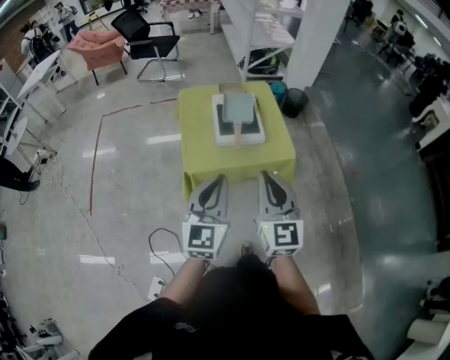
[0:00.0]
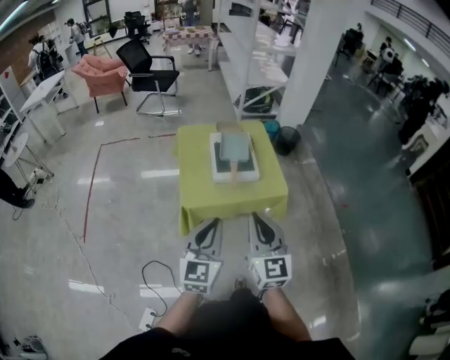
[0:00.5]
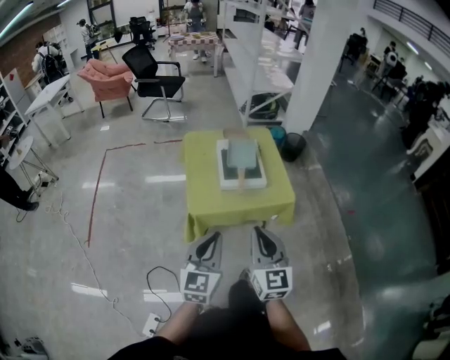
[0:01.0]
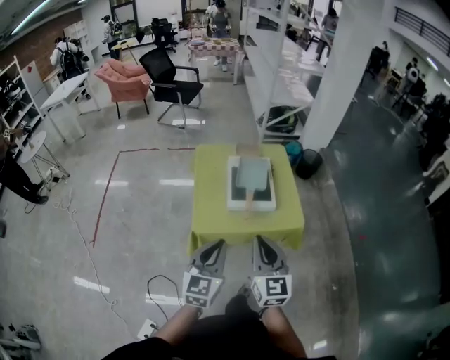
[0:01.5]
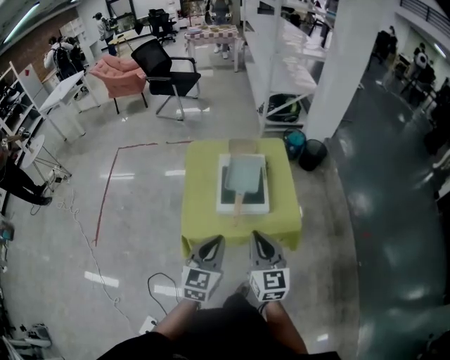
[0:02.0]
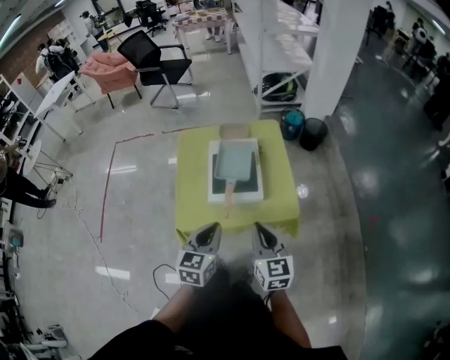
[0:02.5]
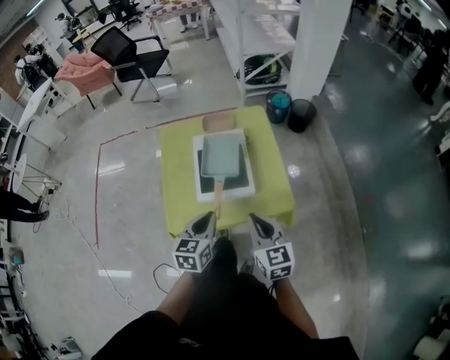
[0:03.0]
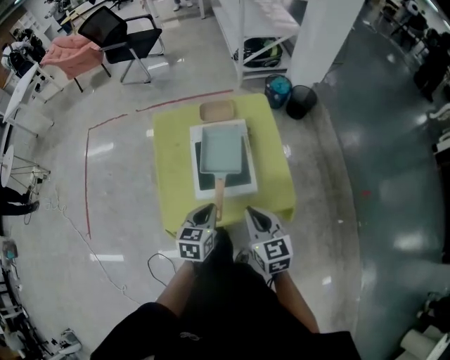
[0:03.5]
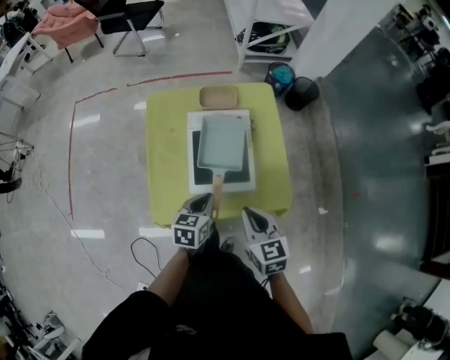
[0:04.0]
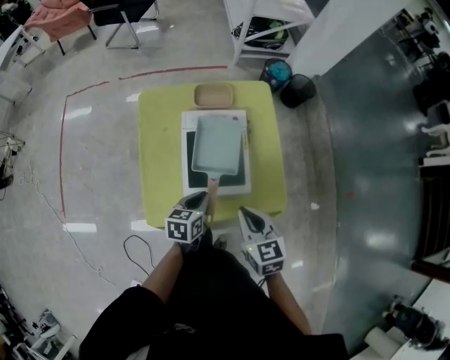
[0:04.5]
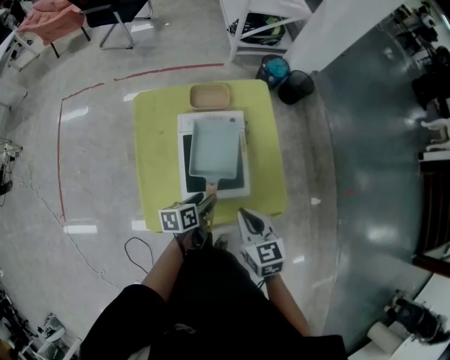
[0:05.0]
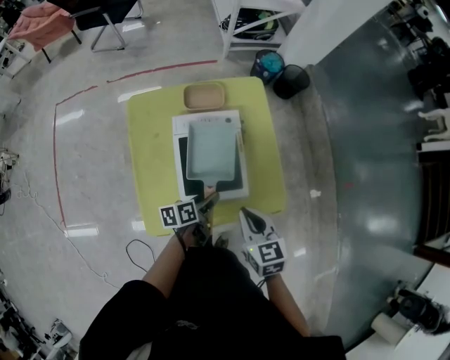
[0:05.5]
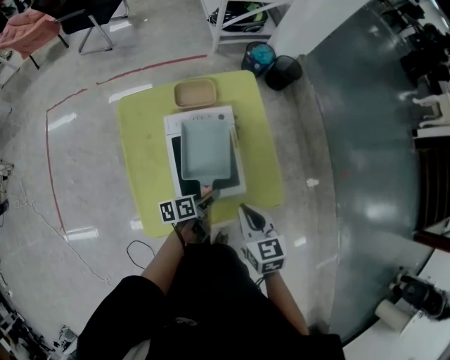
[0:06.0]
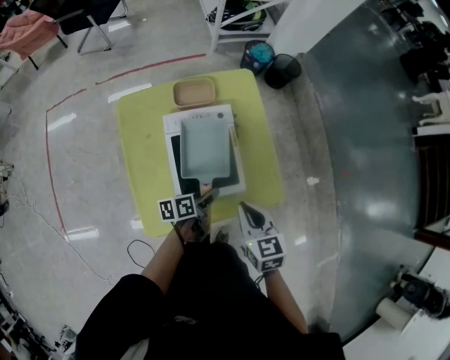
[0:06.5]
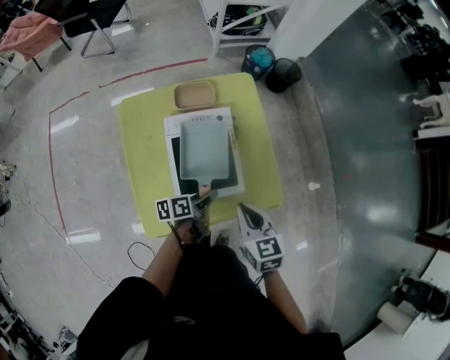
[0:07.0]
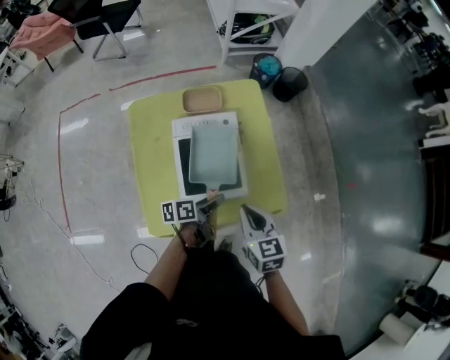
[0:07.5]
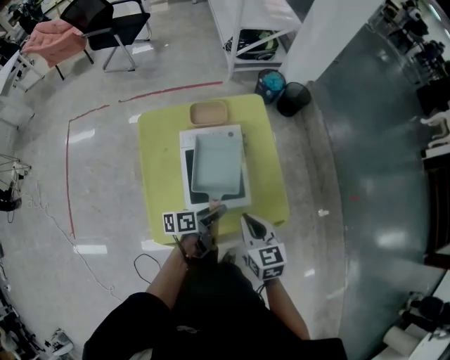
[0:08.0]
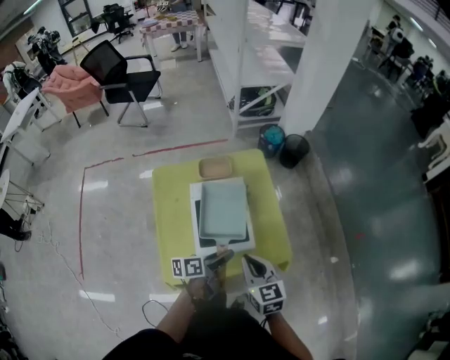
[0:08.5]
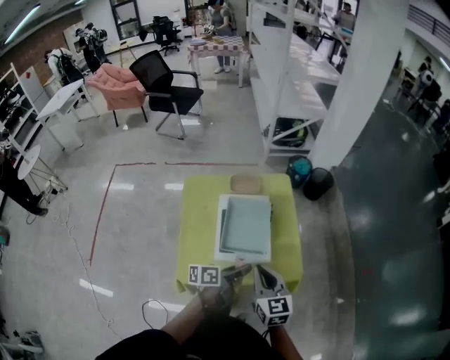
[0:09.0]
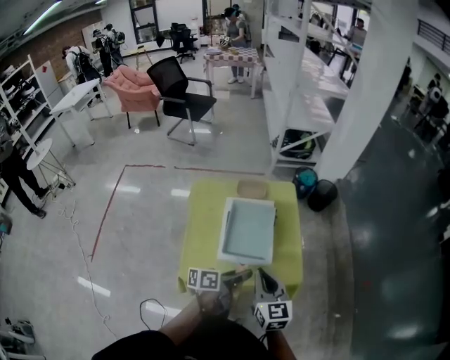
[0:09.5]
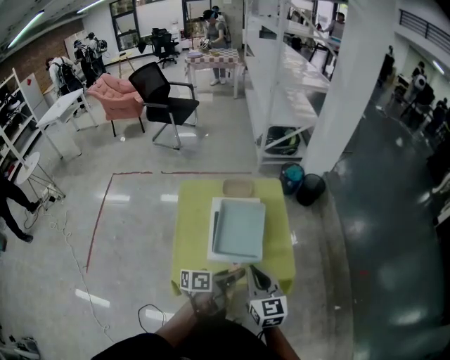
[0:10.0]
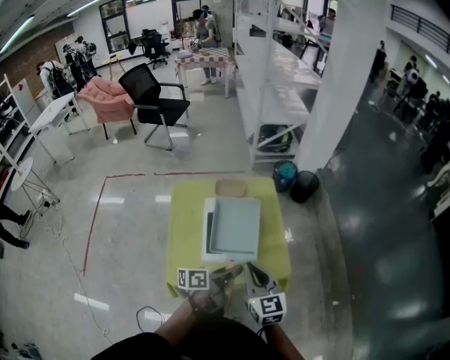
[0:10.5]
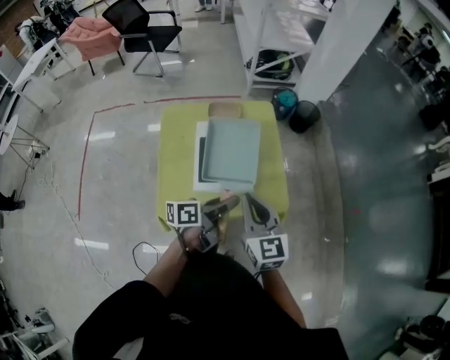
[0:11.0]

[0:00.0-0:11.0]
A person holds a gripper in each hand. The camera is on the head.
0:00.0 to 0:02.0: Both grippers move forward and downward, about 20 cm.
0:02.0 to 0:03.5: The grippers both shift forward and downward by approximately 15 cm. The left gripper changes its angle by roughly 30 degrees.
0:03.5 to 0:05.5: The left gripper heads downward and forward, covering about 15 cm, rolls counterclockwise, seen from behind, by approximately 40 degrees, and opens its fingers; the right gripper shifts some 10 cm forward and downward.
0:05.5 to 0:07.5: The grippers make only small movements.
0:07.5 to 0:09.0: Both grippers move upward and backward, some 10 cm.
0:09.0 to 0:11.0: The grippers stay close to where they were, moving slightly.

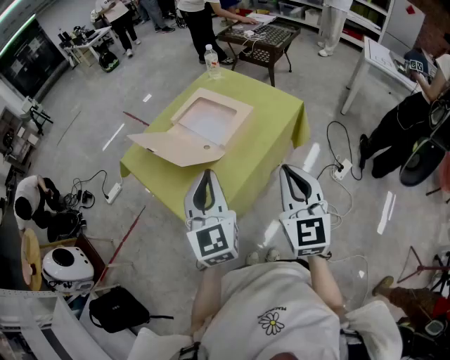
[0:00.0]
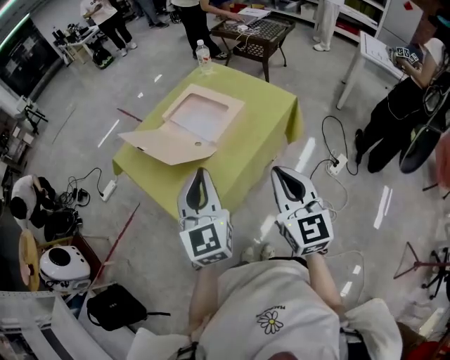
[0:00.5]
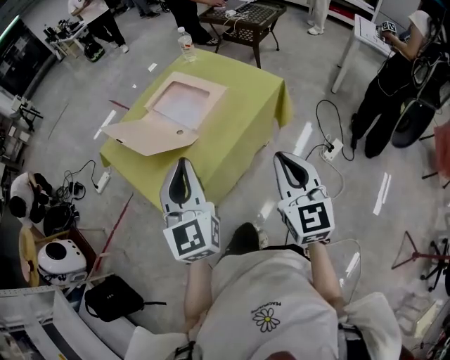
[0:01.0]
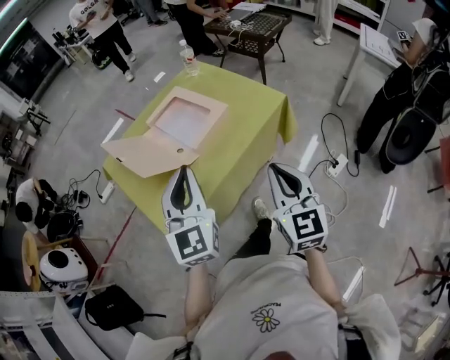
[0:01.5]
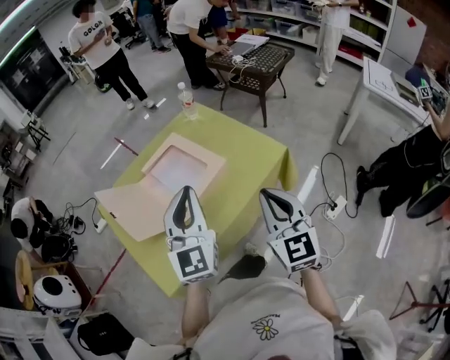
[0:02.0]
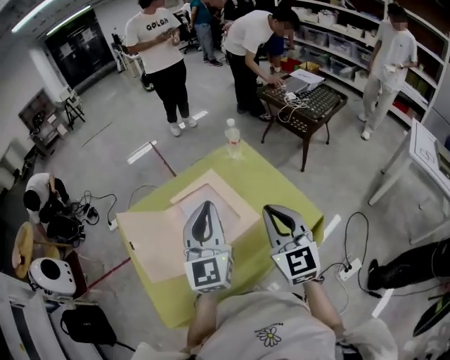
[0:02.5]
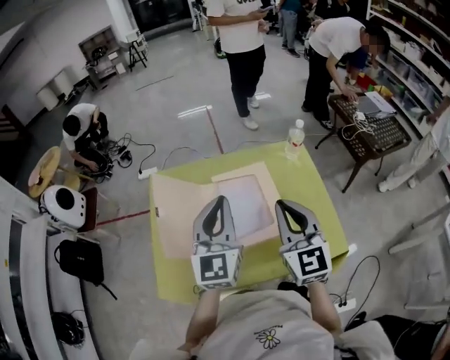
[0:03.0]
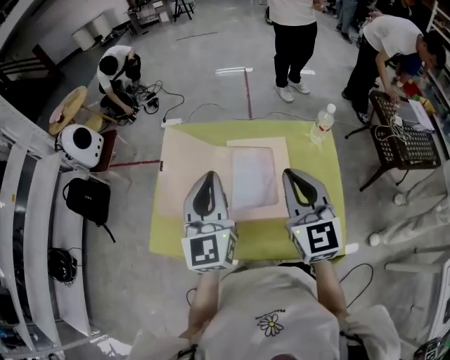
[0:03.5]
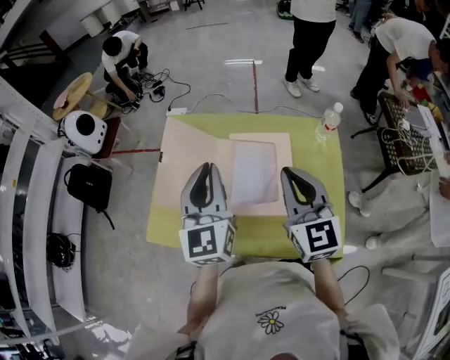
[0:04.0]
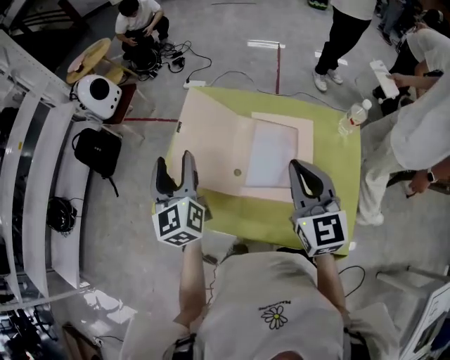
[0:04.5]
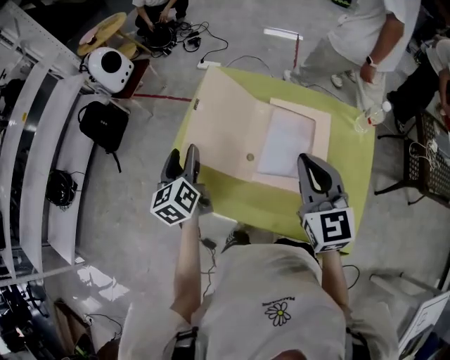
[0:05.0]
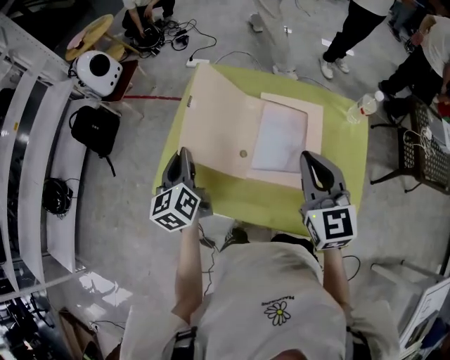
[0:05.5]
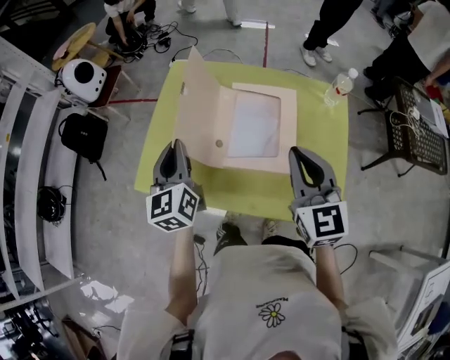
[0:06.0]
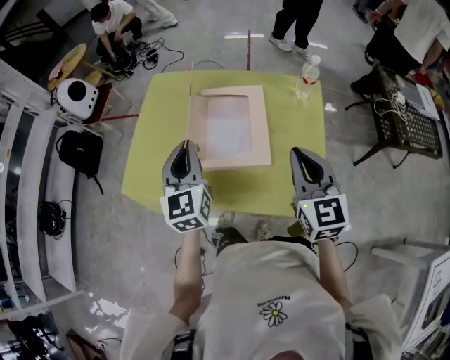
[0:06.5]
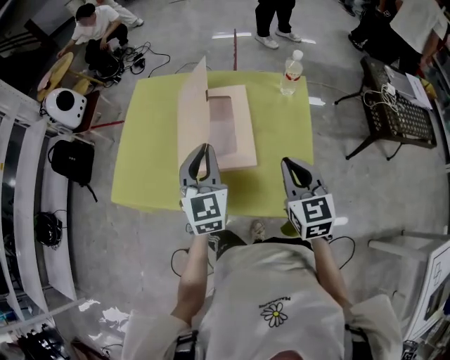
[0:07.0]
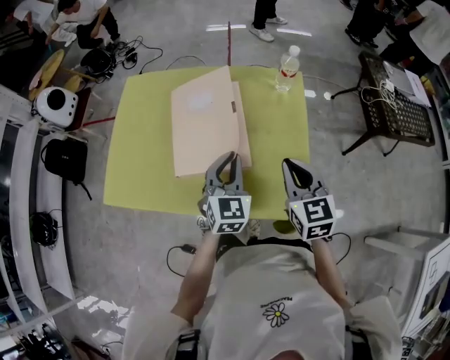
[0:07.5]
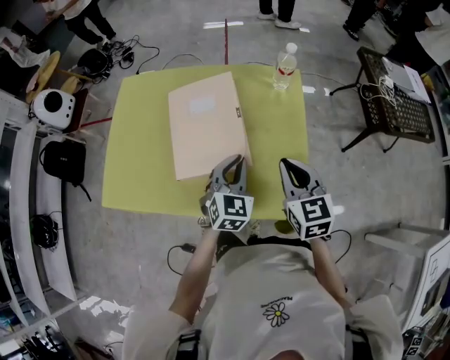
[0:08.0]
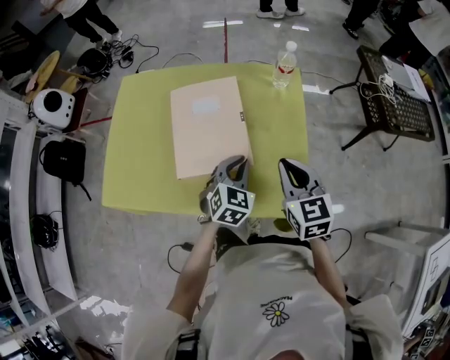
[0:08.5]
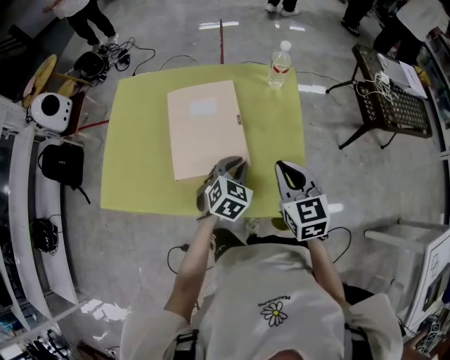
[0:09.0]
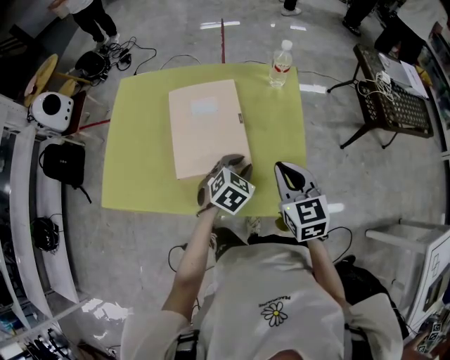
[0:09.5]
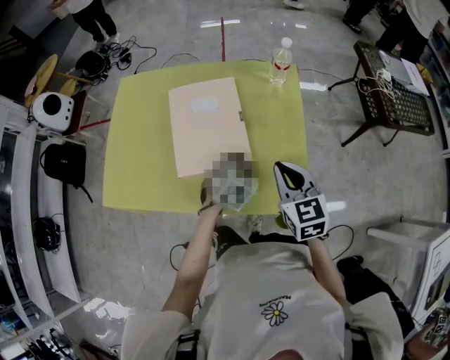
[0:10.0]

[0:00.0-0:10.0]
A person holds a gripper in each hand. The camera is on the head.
0:00.0 to 0:02.0: The grippers both shift forward and to the right by approximately 20 cm.
0:02.0 to 0:04.0: The left gripper moves roughly 20 cm, and rotates approximately 50 degrees. The right gripper shifts by roughly 30 cm, and changes its angle by some 50 degrees.
0:04.0 to 0:06.0: The right gripper is displaced backward by roughly 5 cm. The left gripper travels to the left and downward by about 15 cm, and opens and closes again.
0:06.0 to 0:08.0: The right gripper travels to the right and downward by about 20 cm, while the left gripper shifts approximately 35 cm to the right and downward, and turns by about 50 degrees.
0:08.0 to 0:10.0: The left gripper heads downward, covering approximately 5 cm, turns by roughly 30 degrees, and opens up.

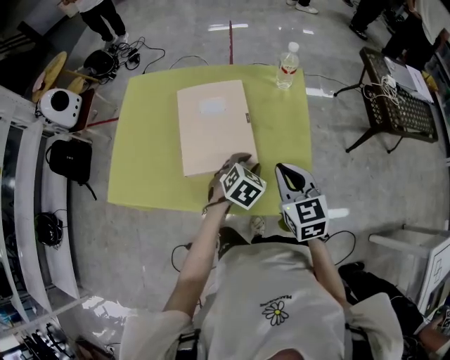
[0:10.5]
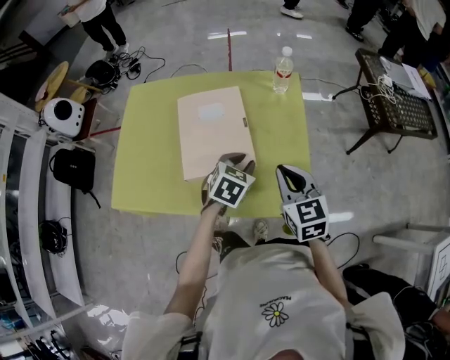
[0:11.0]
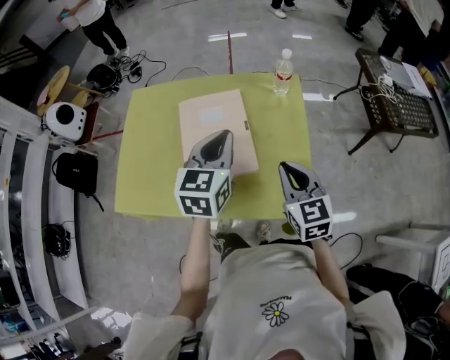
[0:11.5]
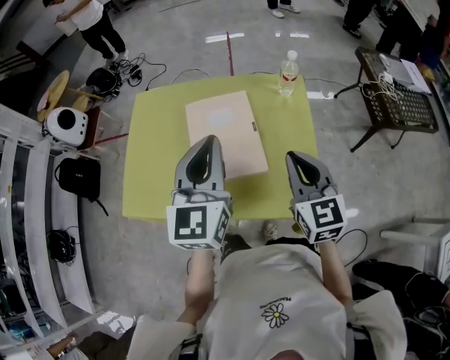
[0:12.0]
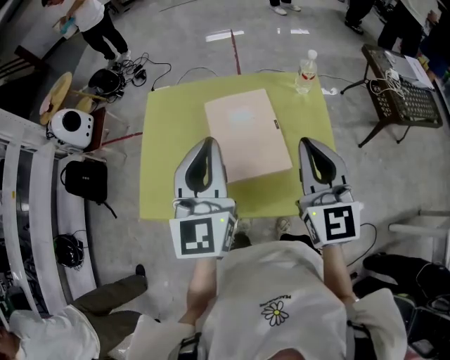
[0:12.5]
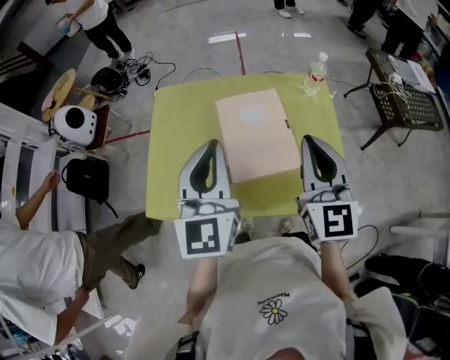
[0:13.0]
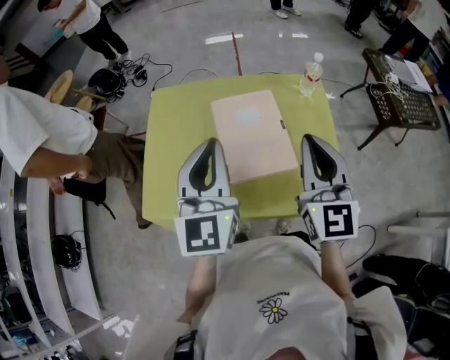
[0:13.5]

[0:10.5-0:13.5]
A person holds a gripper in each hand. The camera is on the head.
0:10.5 to 0:12.0: The left gripper goes some 30 cm upward, angles its fingers upward, by approximately 50 degrees, and closes, while the right gripper travels upward by some 10 cm.
0:12.0 to 0:13.5: The left gripper is displaced to the left by roughly 10 cm. The right gripper shifts about 10 cm upward and to the left.

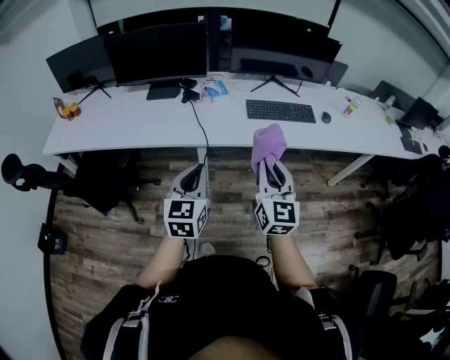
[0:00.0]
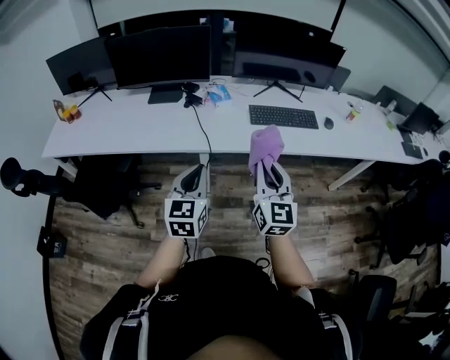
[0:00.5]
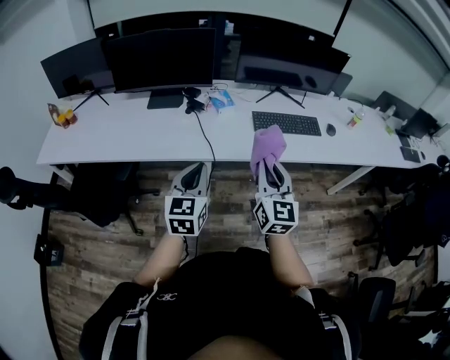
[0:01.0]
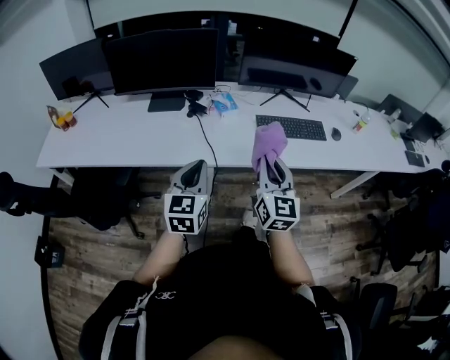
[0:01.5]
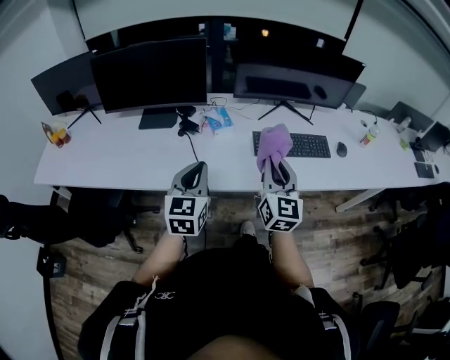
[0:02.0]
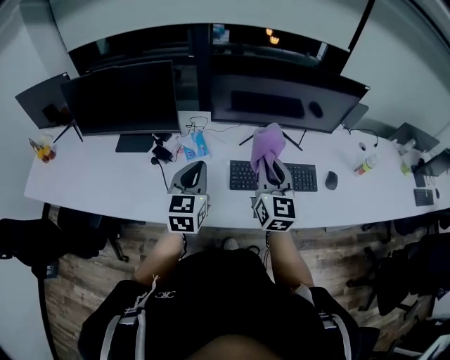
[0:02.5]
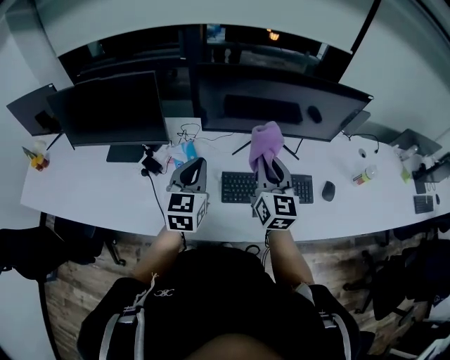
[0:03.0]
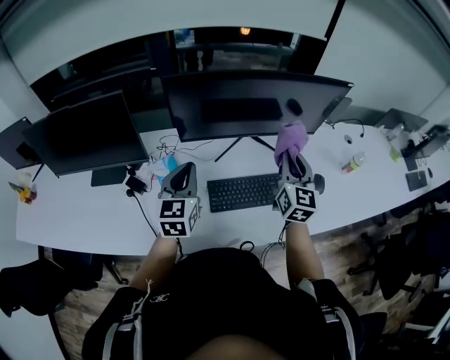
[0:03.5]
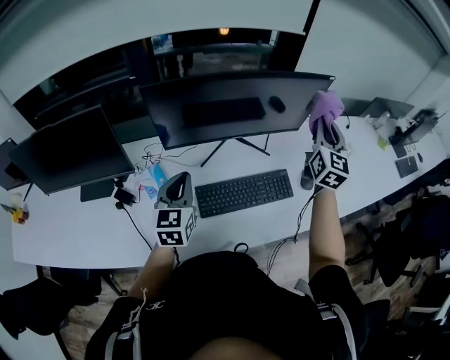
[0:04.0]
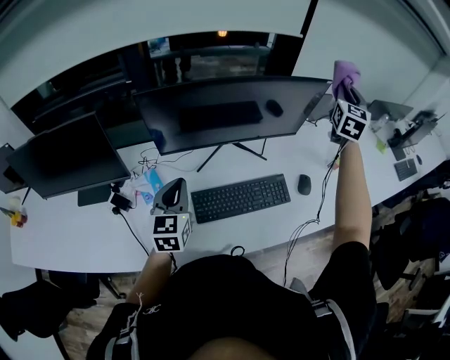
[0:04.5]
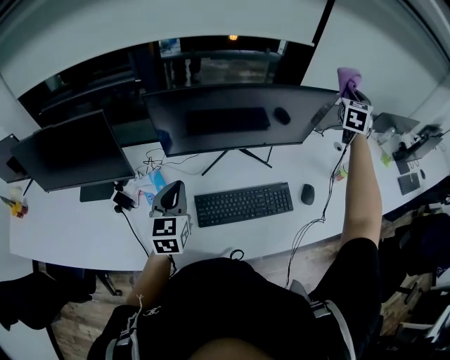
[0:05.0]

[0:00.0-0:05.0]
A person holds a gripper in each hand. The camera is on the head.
0:00.0 to 0:02.5: Both grippers are carried forward, approximately 50 cm.
0:02.5 to 0:05.0: The right gripper goes some 60 cm forward and to the right, and swivels some 50 degrees; the left gripper moves forward, roughly 15 cm.
